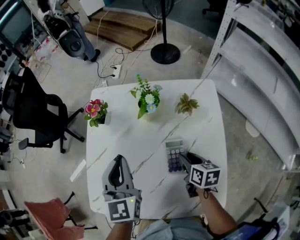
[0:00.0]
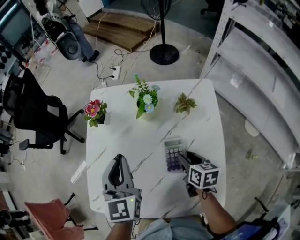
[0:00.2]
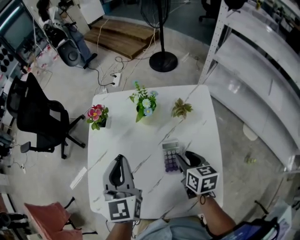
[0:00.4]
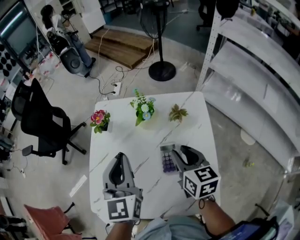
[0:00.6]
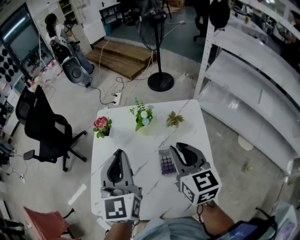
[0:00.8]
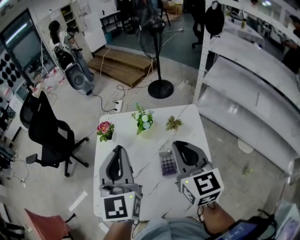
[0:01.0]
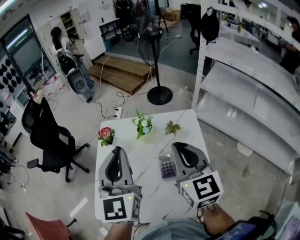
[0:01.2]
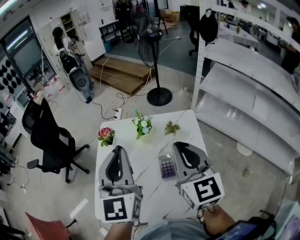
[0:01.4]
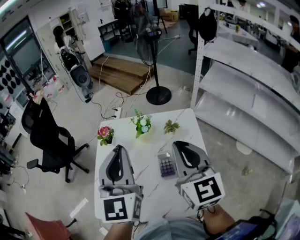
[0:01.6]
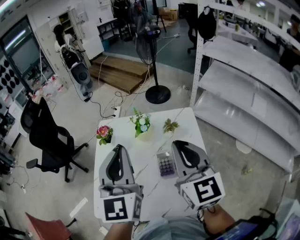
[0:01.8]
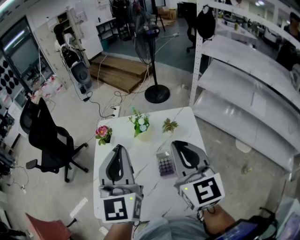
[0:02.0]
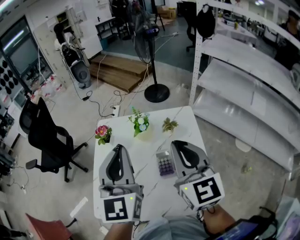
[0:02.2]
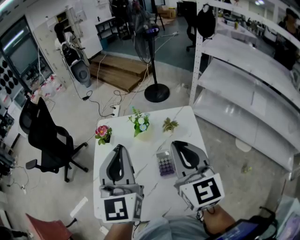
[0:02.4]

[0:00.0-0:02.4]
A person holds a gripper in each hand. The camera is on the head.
0:00.0 to 0:01.2: The right gripper goes some 35 cm upward, angles its fingers upward, by about 40 degrees, and closes its fingers; the left gripper travels upward by roughly 20 cm, and turns by roughly 20 degrees.
0:01.2 to 0:02.4: The grippers move only a little.

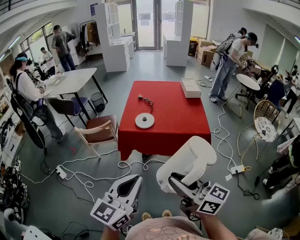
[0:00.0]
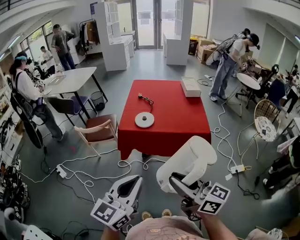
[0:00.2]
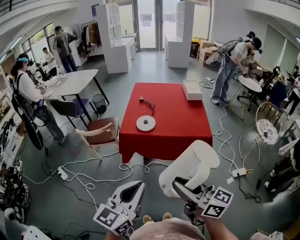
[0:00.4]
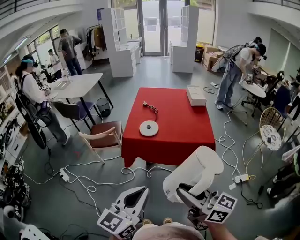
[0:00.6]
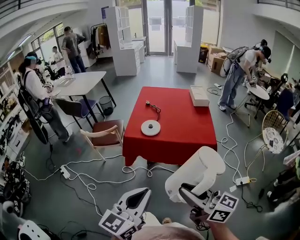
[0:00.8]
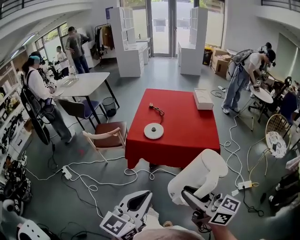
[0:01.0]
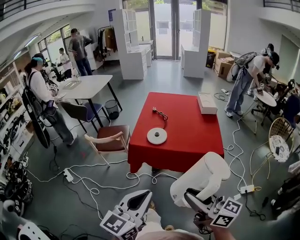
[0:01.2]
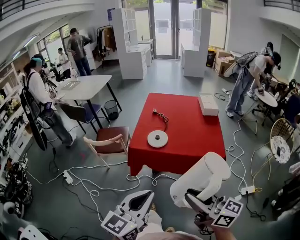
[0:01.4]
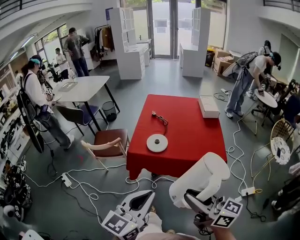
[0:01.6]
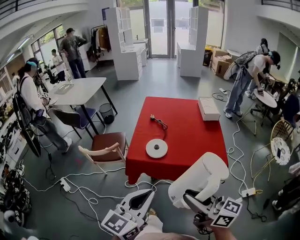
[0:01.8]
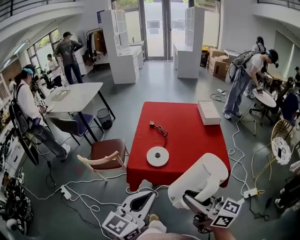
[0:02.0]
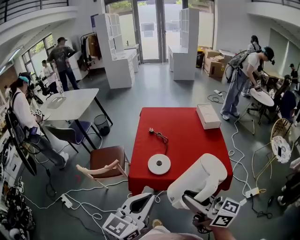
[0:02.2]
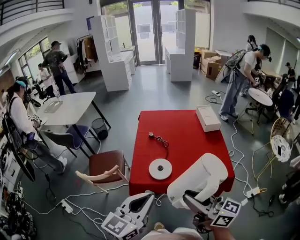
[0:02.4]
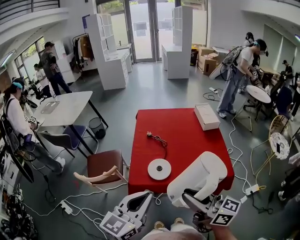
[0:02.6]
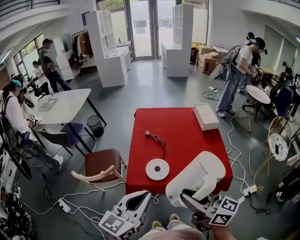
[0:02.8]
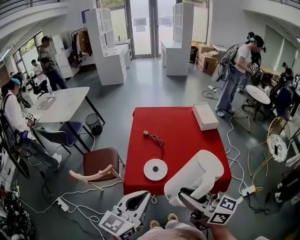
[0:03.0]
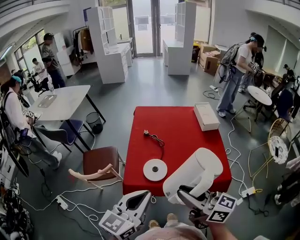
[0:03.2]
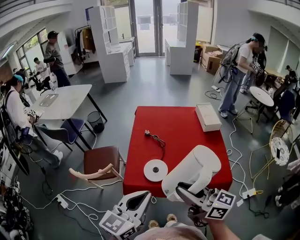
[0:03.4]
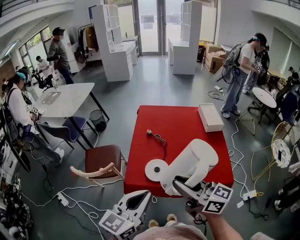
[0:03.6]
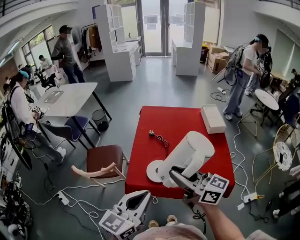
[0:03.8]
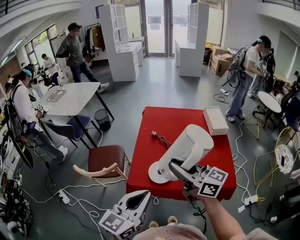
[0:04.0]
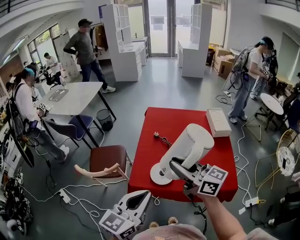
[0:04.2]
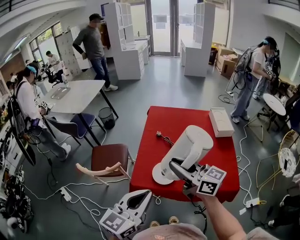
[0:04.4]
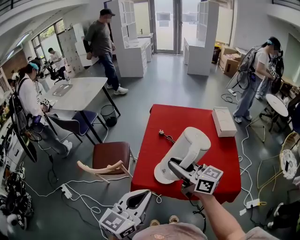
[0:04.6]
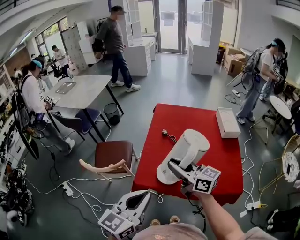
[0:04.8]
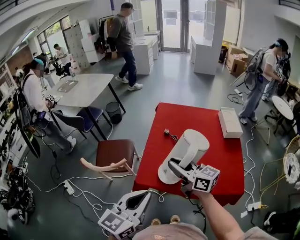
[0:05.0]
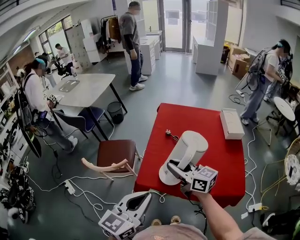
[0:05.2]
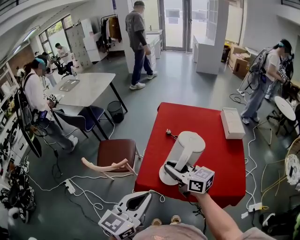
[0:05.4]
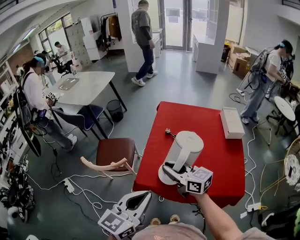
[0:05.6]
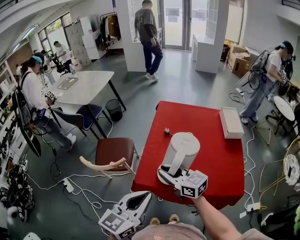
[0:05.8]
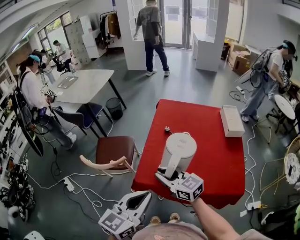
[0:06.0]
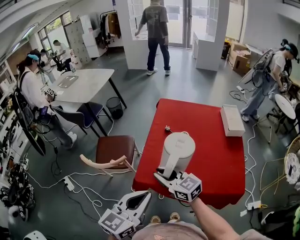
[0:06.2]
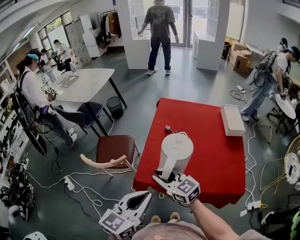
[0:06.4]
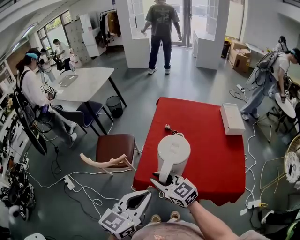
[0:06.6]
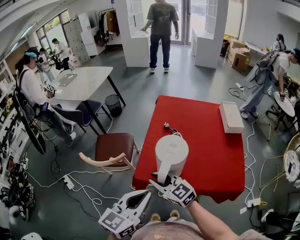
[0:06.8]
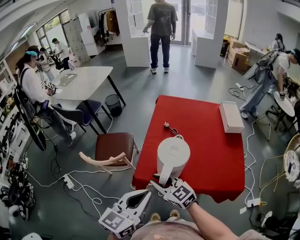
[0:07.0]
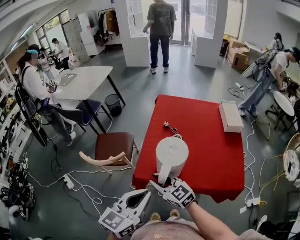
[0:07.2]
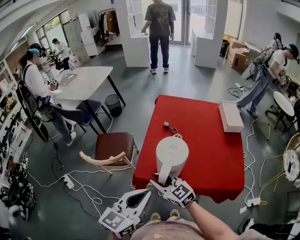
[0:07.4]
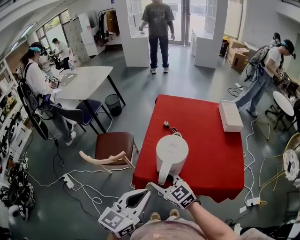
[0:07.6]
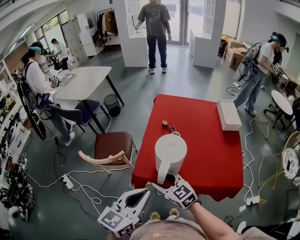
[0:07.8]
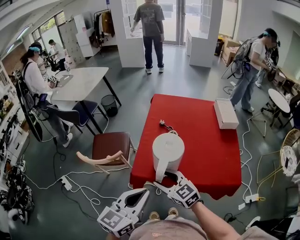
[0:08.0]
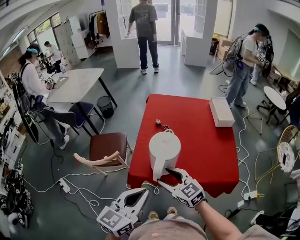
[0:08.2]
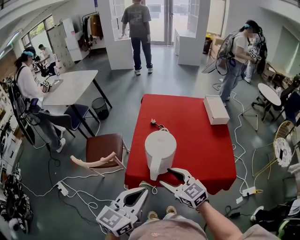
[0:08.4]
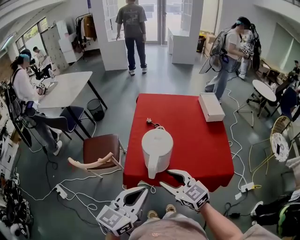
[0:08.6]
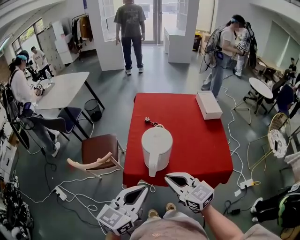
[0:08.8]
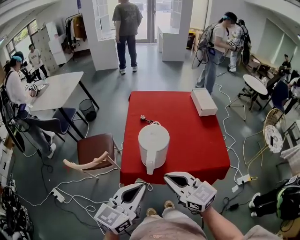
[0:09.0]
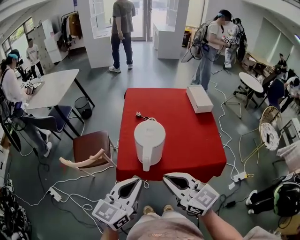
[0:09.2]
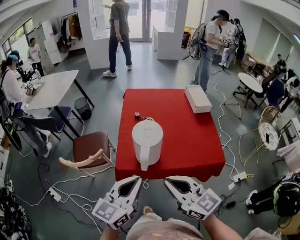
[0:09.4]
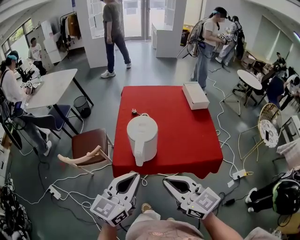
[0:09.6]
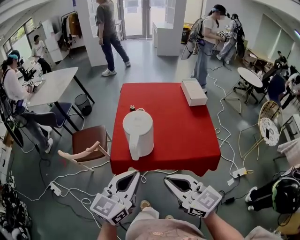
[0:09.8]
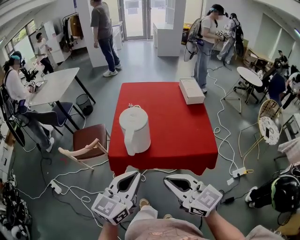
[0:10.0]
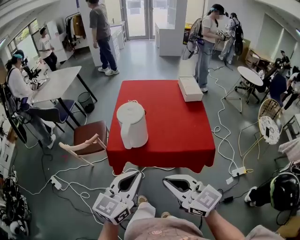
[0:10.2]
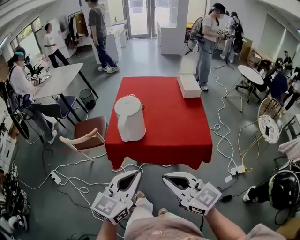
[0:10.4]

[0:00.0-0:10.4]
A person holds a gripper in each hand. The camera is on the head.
0:00.0 to 0:01.4: Both grippers move forward, about 5 cm.
0:01.4 to 0:03.0: The two grippers go roughly 25 cm forward.
0:03.0 to 0:04.4: The right gripper is displaced forward by some 15 cm.
0:04.4 to 0:06.0: The right gripper is displaced downward and to the left by approximately 15 cm.
0:06.0 to 0:07.4: The right gripper changes place by about 5 cm.
0:07.4 to 0:09.0: The right gripper travels upward, to the right and backward by roughly 15 cm, and closes up.
0:09.0 to 0:10.4: The grippers both shift backward and to the right by some 20 cm.

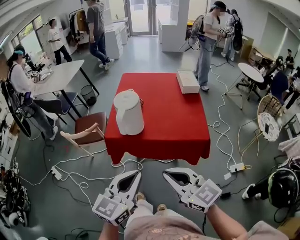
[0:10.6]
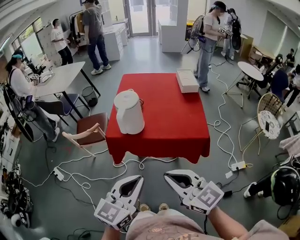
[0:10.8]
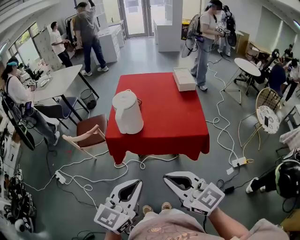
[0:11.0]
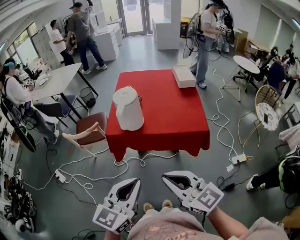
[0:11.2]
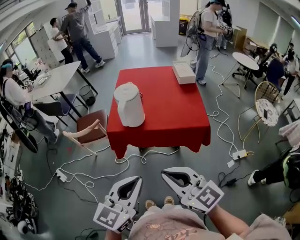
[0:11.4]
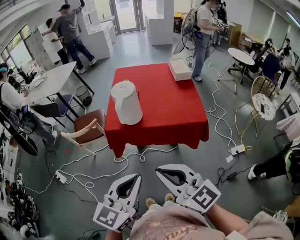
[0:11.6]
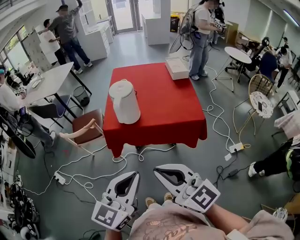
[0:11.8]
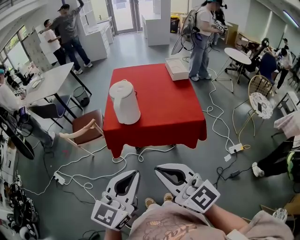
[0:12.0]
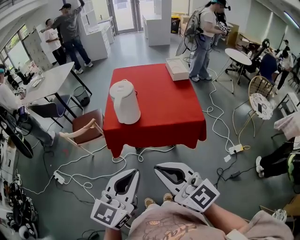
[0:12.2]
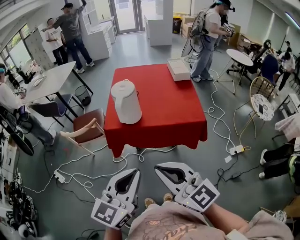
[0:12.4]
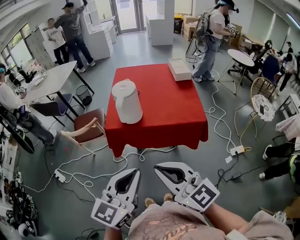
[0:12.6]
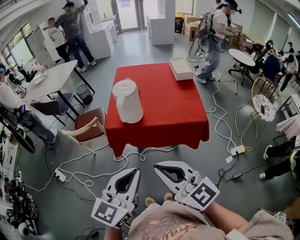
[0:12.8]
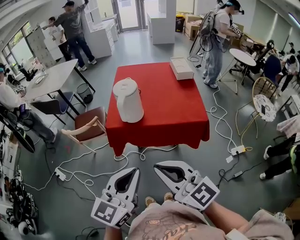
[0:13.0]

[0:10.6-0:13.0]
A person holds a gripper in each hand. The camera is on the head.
0:10.6 to 0:11.8: Both grippers move backward, about 5 cm.
0:11.8 to 0:13.0: Both grippers stay put.

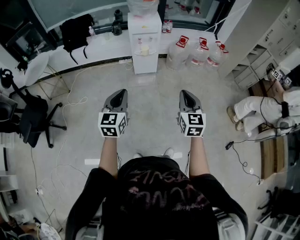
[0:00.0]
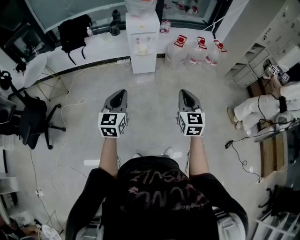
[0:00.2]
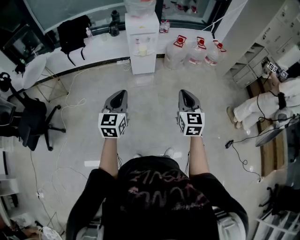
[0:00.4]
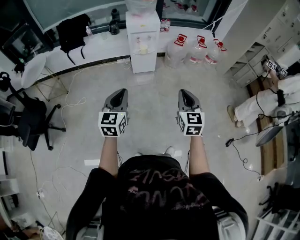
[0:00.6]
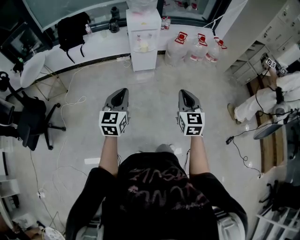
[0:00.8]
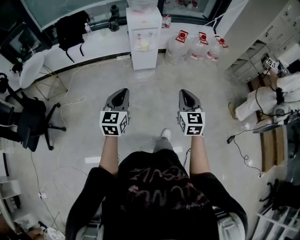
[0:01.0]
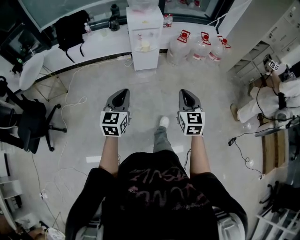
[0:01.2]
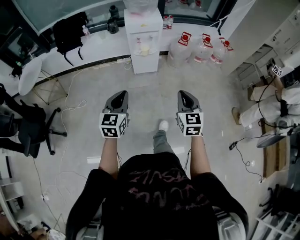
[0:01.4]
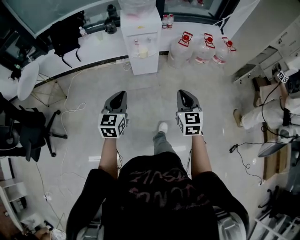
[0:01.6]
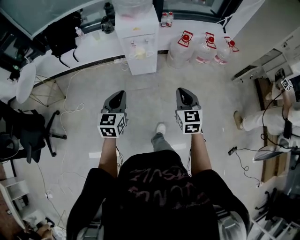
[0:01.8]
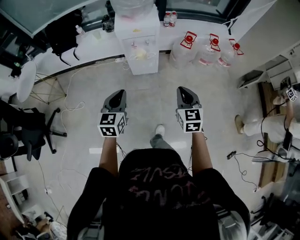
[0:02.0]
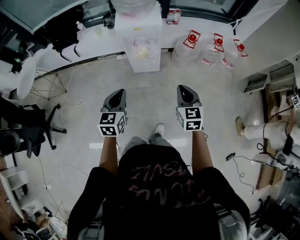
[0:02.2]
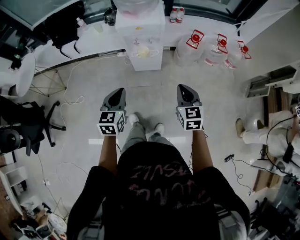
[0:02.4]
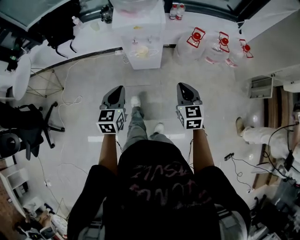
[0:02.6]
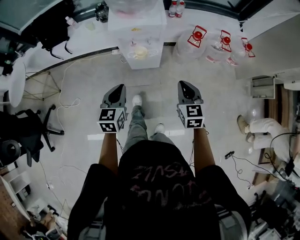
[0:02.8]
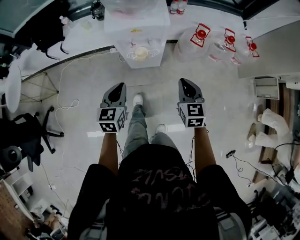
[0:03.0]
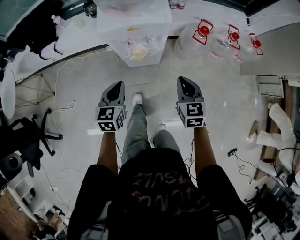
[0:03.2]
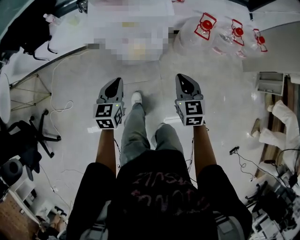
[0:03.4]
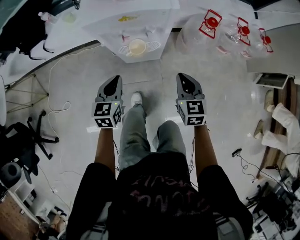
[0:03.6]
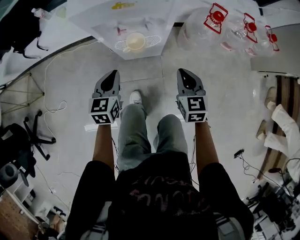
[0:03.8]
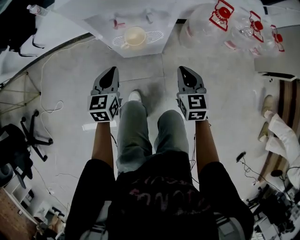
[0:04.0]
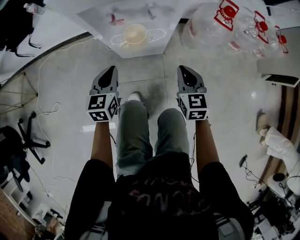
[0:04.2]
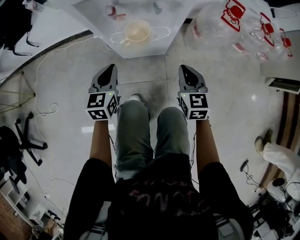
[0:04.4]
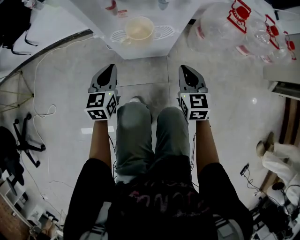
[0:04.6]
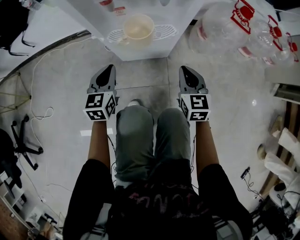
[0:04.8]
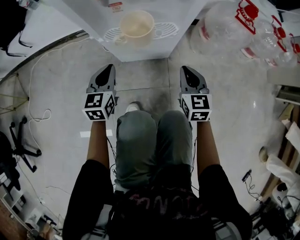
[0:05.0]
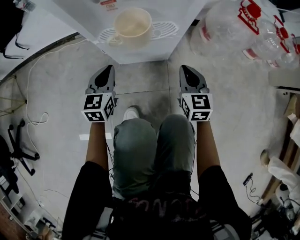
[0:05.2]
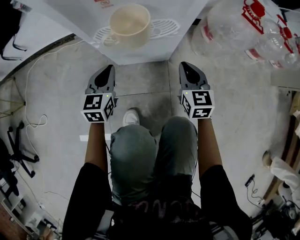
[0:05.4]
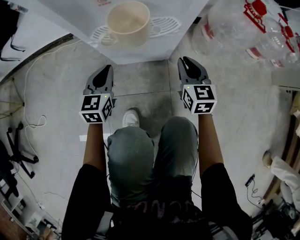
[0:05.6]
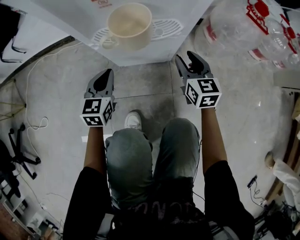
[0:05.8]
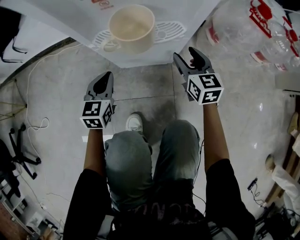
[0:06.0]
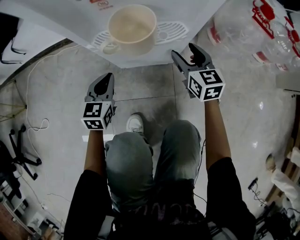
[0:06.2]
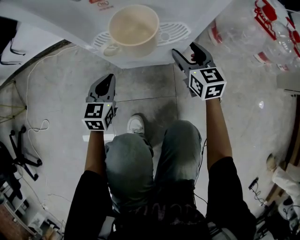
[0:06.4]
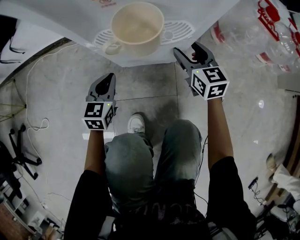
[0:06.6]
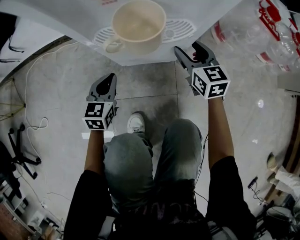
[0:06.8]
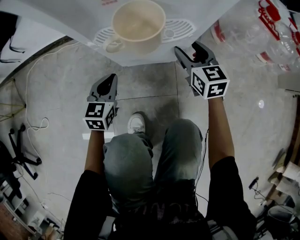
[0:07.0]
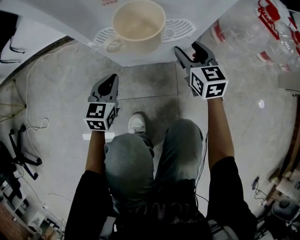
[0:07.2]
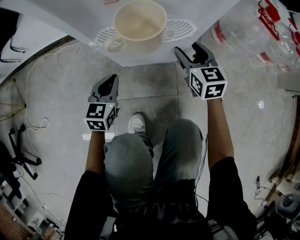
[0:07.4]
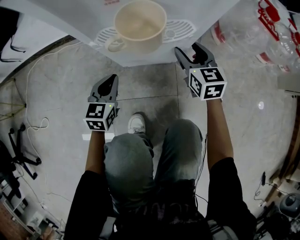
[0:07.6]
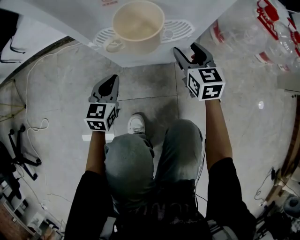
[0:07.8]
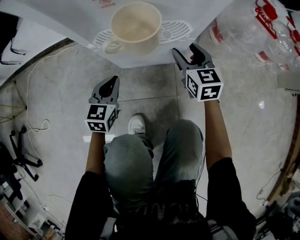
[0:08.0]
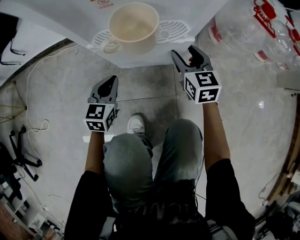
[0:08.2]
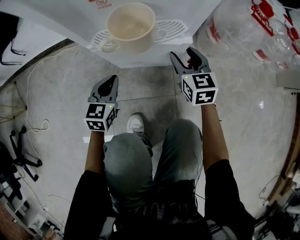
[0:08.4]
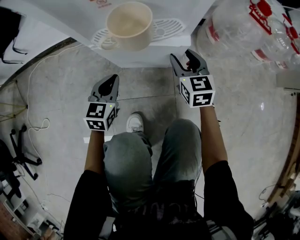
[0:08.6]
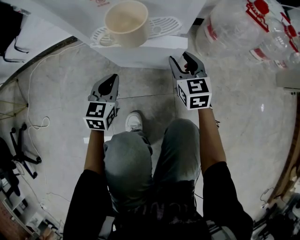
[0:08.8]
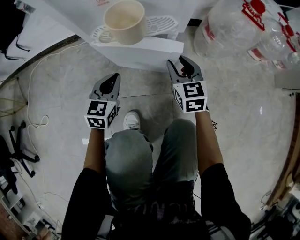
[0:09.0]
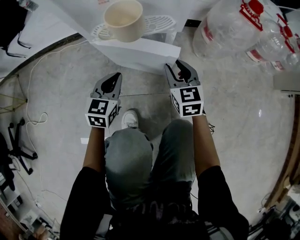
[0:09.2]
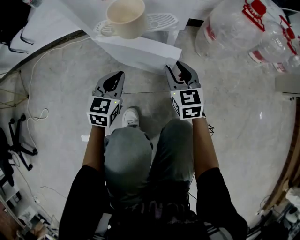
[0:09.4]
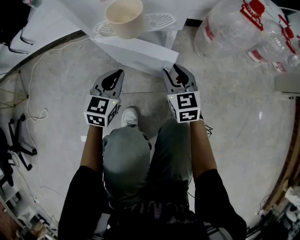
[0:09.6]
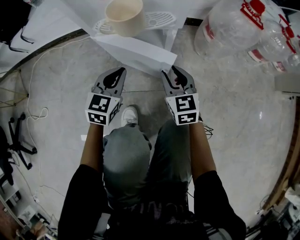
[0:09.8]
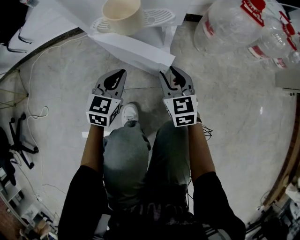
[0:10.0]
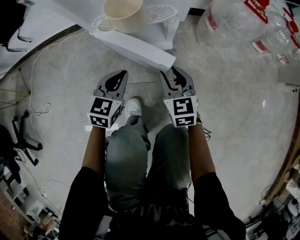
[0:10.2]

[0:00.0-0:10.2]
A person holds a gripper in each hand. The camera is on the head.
0:00.0 to 0:01.4: Both grippers travel together forward and downward, about 10 cm.
0:01.4 to 0:03.0: The two grippers travel together, forward, some 40 cm.
0:03.0 to 0:04.4: The two grippers go about 35 cm downward.
0:04.4 to 0:05.8: The right gripper shifts about 20 cm downward and forward, and opens up. The left gripper shifts approximately 15 cm downward.
0:05.8 to 0:07.2: The right gripper shifts by some 5 cm.
0:07.2 to 0:08.8: The right gripper shifts roughly 5 cm backward.
0:08.8 to 0:10.2: The right gripper moves backward, approximately 10 cm. Meanwhile the left gripper moves about 5 cm.
